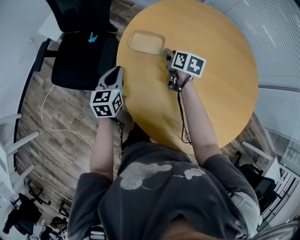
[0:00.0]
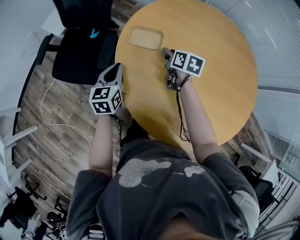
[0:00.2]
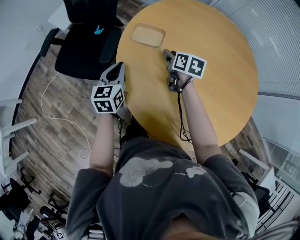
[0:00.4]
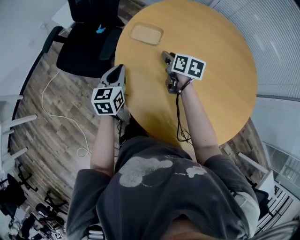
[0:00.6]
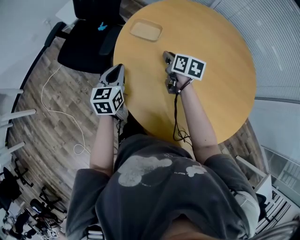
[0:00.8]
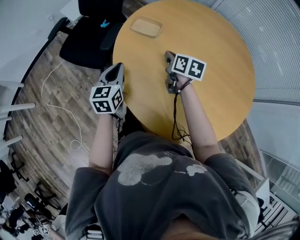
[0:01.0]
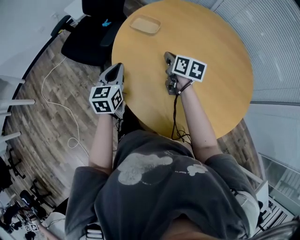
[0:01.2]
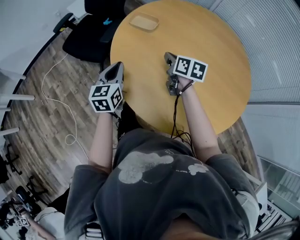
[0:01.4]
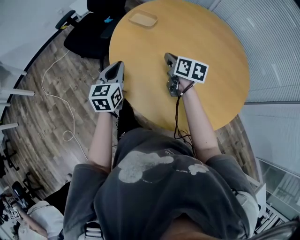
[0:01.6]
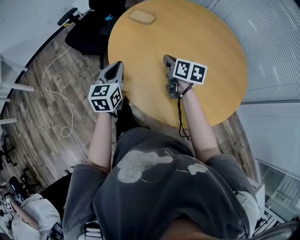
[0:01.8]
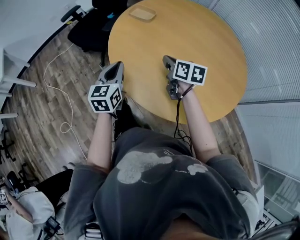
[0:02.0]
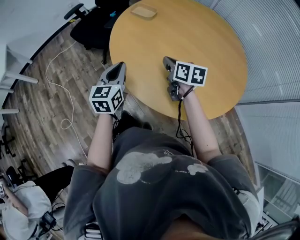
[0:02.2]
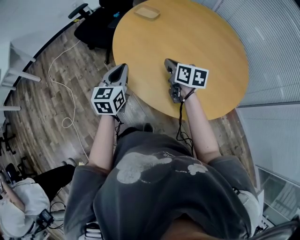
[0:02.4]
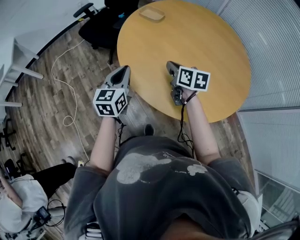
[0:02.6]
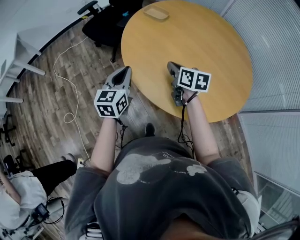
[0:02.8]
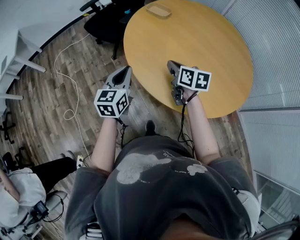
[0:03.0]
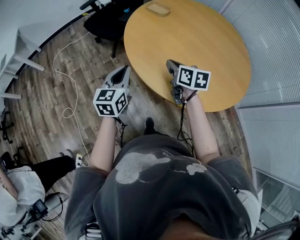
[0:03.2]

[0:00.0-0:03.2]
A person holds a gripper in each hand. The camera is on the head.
0:00.0 to 0:01.6: The grippers both shift backward by some 30 cm. The right gripper swivels some 30 degrees, and closes up.
0:01.6 to 0:03.2: Both grippers travel together backward, roughly 20 cm.

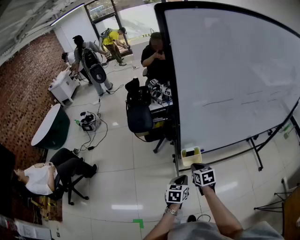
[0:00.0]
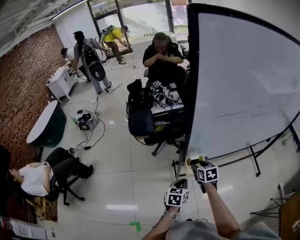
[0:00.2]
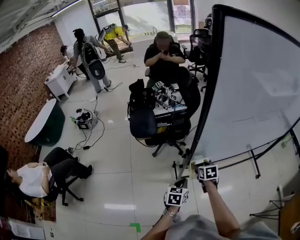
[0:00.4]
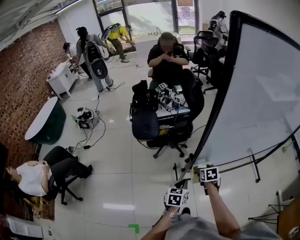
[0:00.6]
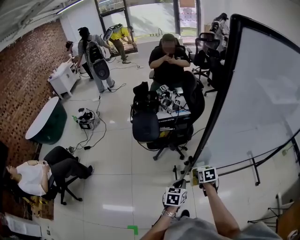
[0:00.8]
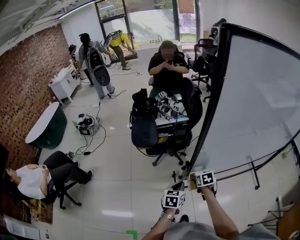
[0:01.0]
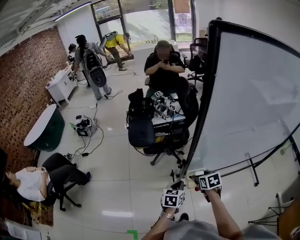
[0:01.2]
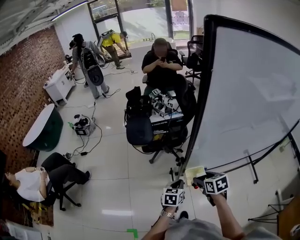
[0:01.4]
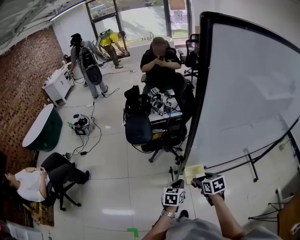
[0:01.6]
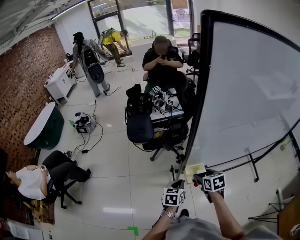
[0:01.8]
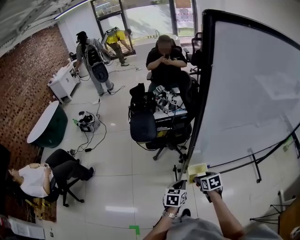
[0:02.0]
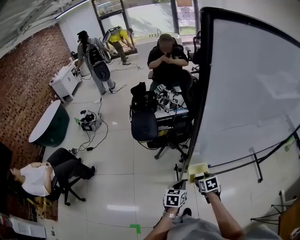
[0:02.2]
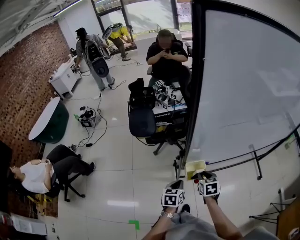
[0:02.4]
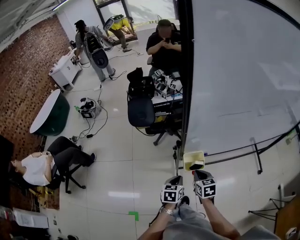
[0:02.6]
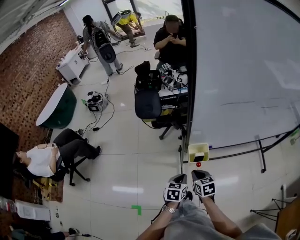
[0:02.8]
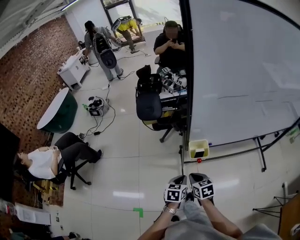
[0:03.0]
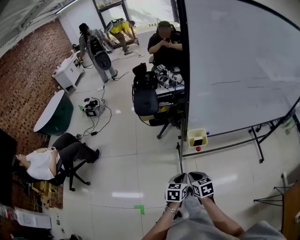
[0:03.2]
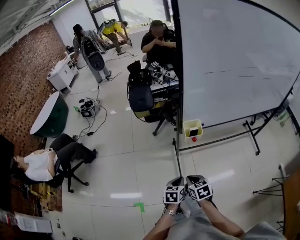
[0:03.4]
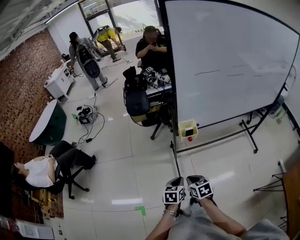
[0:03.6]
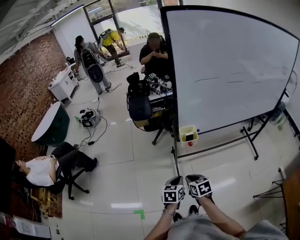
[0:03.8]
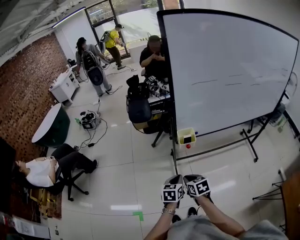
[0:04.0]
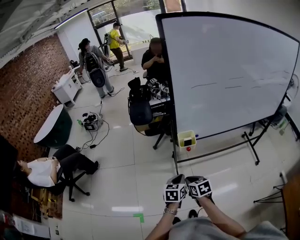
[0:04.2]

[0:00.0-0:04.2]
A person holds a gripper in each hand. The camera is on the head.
0:00.0 to 0:01.4: The left gripper goes about 10 cm forward and to the left; the right gripper travels upward by about 5 cm, and opens its fingers.
0:01.4 to 0:02.8: The left gripper travels backward by some 10 cm. The right gripper travels downward and backward by approximately 10 cm, and closes its fingers.
0:02.8 to 0:04.2: The right gripper is displaced backward by approximately 20 cm. The left gripper moves backward and upward, approximately 15 cm.

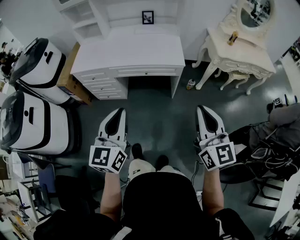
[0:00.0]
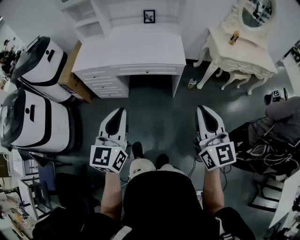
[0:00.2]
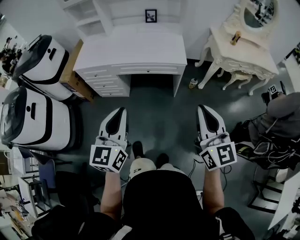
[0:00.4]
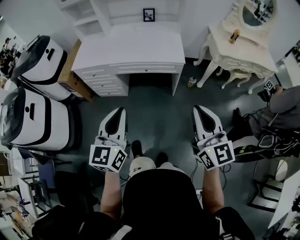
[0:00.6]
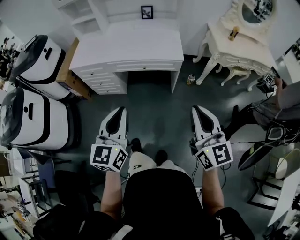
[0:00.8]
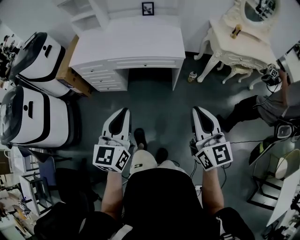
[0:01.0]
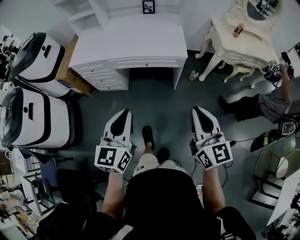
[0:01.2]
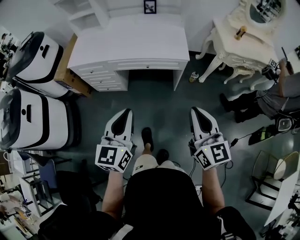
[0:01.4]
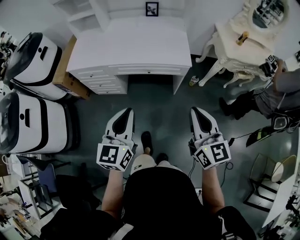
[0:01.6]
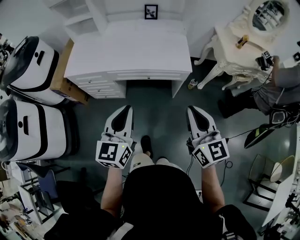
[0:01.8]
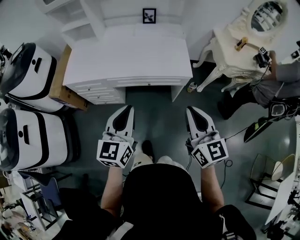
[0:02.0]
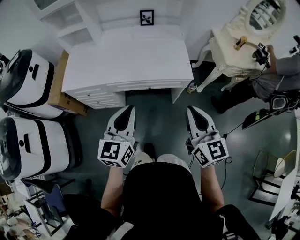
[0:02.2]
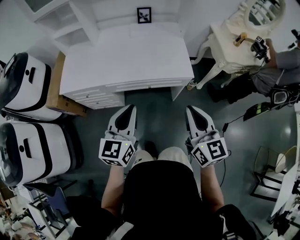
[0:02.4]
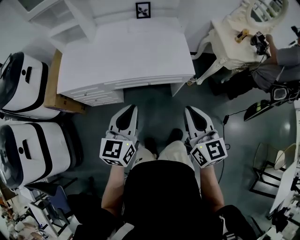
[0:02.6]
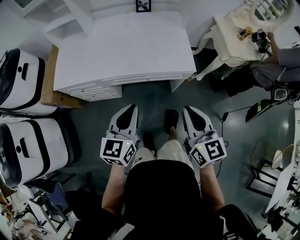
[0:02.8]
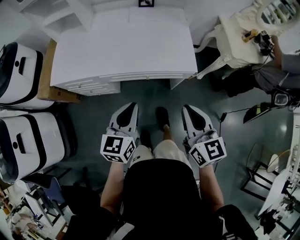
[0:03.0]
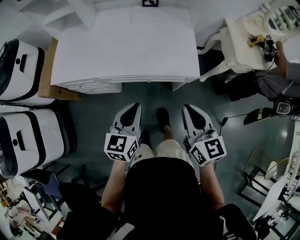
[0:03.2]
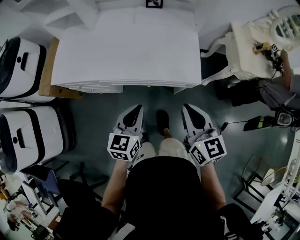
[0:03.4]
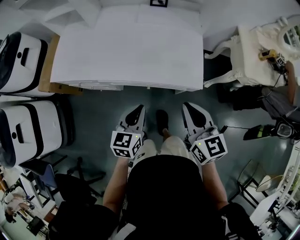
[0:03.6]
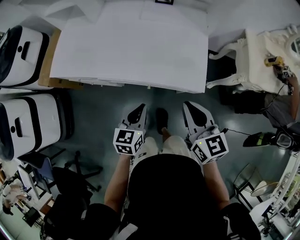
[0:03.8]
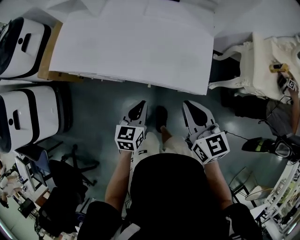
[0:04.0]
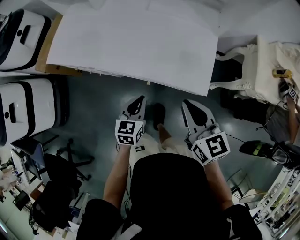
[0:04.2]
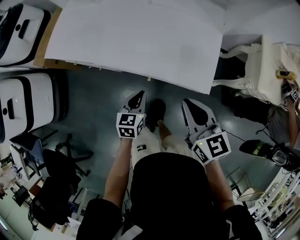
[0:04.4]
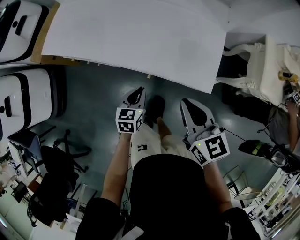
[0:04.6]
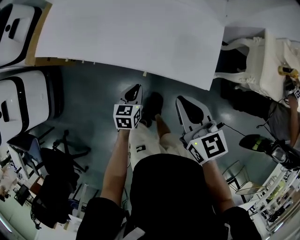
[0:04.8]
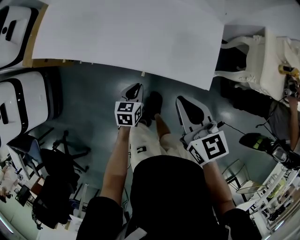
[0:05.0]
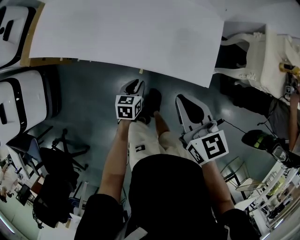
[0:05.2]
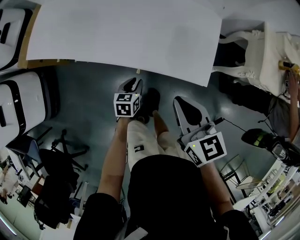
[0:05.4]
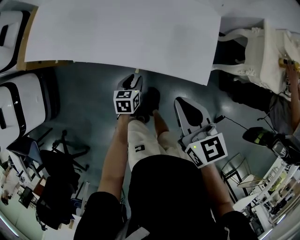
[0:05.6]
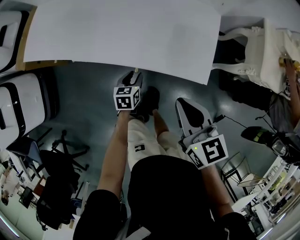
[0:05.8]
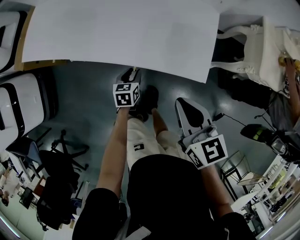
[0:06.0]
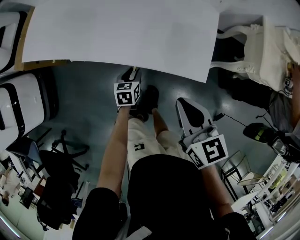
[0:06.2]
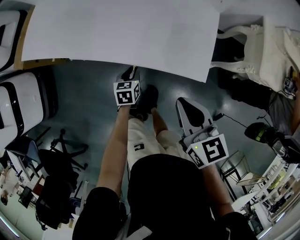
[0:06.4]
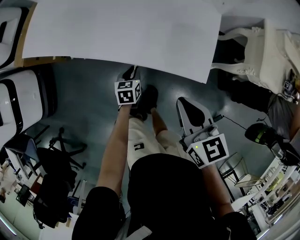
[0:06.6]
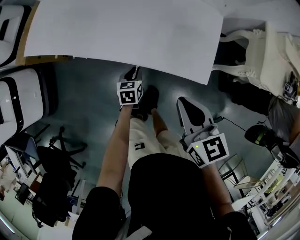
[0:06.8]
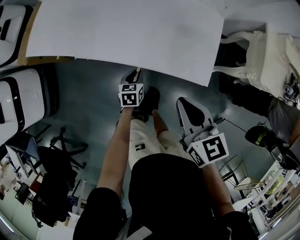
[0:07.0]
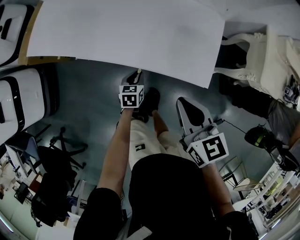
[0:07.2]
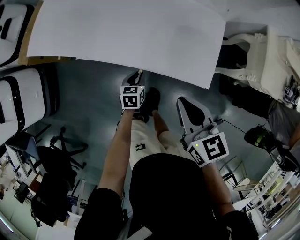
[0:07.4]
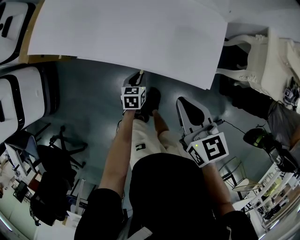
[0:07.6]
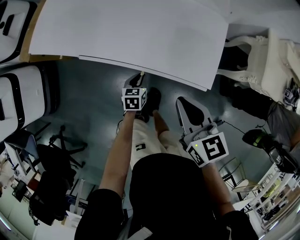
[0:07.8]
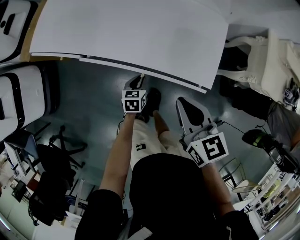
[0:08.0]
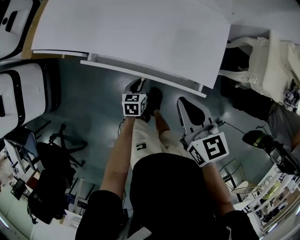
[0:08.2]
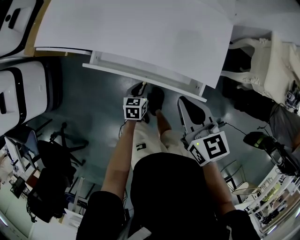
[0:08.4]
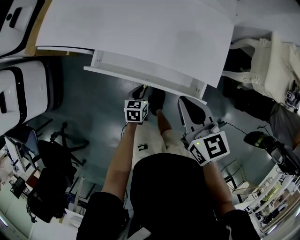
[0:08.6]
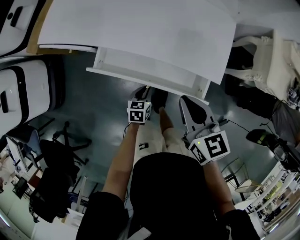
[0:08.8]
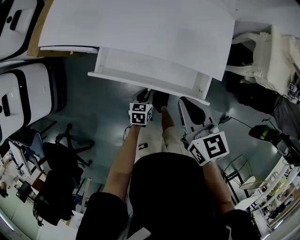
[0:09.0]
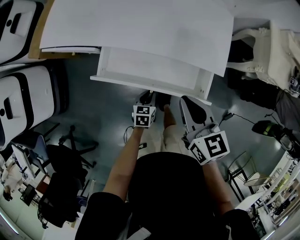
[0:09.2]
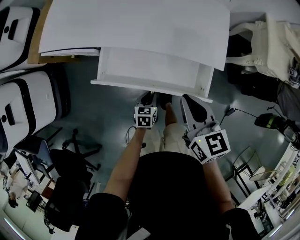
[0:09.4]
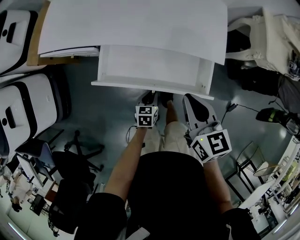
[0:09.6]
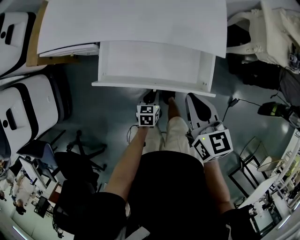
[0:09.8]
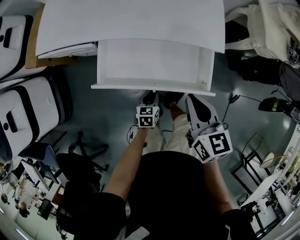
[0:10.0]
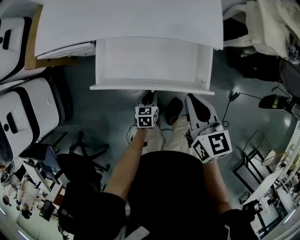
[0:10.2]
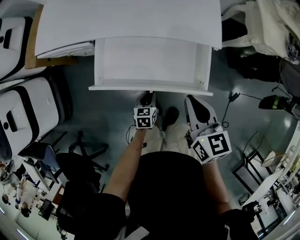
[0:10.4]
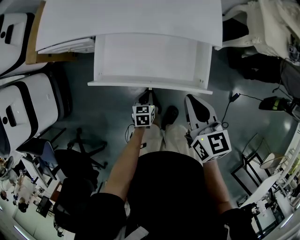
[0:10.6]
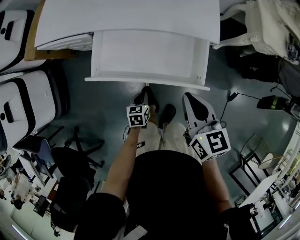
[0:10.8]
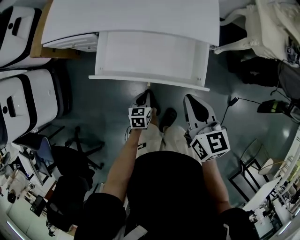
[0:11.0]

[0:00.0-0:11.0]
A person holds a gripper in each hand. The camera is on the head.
0:00.0 to 0:01.6: Both grippers move forward and downward, approximately 10 cm.
0:01.6 to 0:03.2: The right gripper heads forward, covering about 25 cm. Meanwhile the left gripper shifts roughly 25 cm forward and downward.
0:03.2 to 0:04.8: The right gripper heads forward and downward, covering approximately 20 cm, and swivels roughly 20 degrees; the left gripper heads downward and forward, covering roughly 30 cm, and swivels approximately 30 degrees.
0:04.8 to 0:06.2: The right gripper moves some 5 cm, while the left gripper travels downward by some 10 cm, and opens.
0:06.2 to 0:07.8: The grippers move only a little.
0:07.8 to 0:09.4: The left gripper is displaced backward by about 15 cm. Meanwhile the right gripper travels to the left and backward by some 10 cm.
0:09.4 to 0:11.0: Both grippers travel together backward, roughly 15 cm.

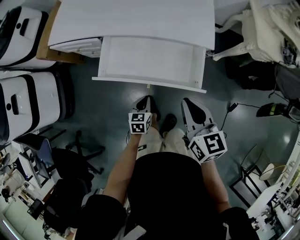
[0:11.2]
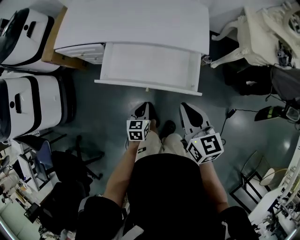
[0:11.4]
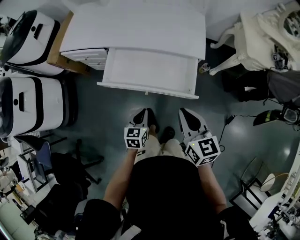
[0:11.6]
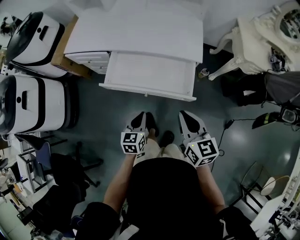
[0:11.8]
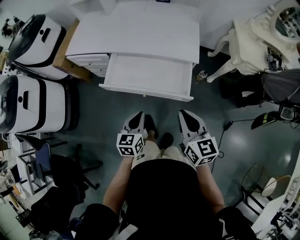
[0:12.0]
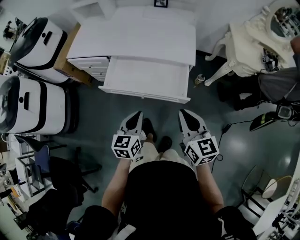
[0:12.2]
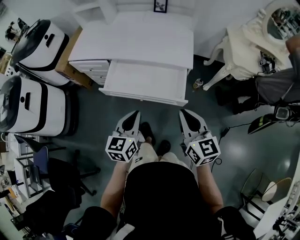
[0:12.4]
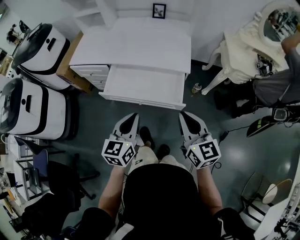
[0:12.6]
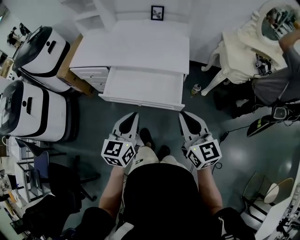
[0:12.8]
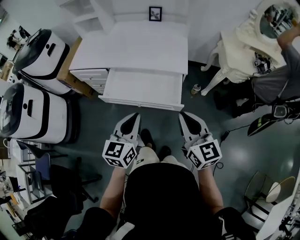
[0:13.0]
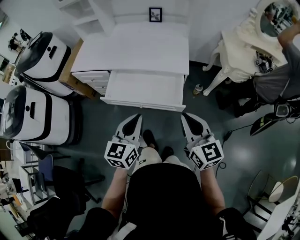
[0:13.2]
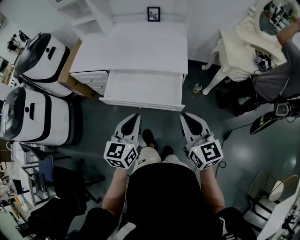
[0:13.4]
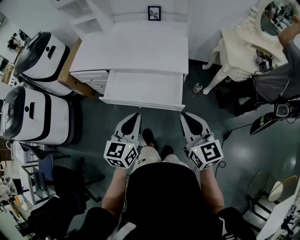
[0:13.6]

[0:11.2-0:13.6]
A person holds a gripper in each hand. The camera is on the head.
0:11.2 to 0:12.4: The right gripper travels backward, upward and to the right by roughly 20 cm. Meanwhile the left gripper goes roughly 30 cm upward, and swivels about 20 degrees.
0:12.4 to 0:13.6: The left gripper travels upward by some 5 cm. The right gripper shifts by approximately 5 cm.

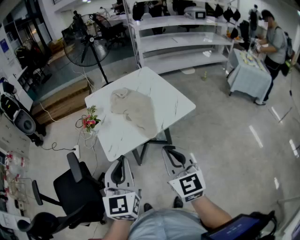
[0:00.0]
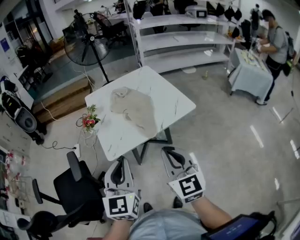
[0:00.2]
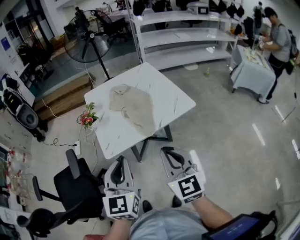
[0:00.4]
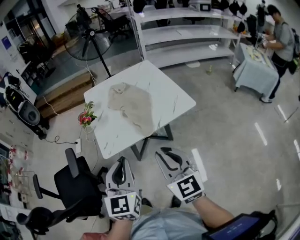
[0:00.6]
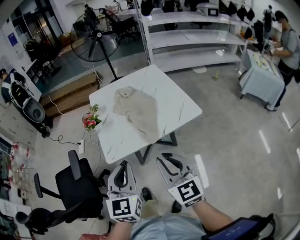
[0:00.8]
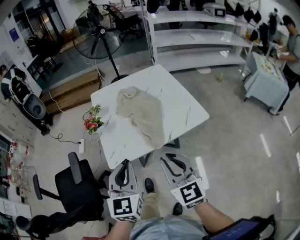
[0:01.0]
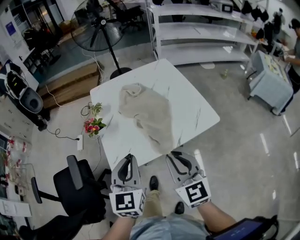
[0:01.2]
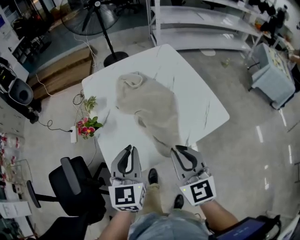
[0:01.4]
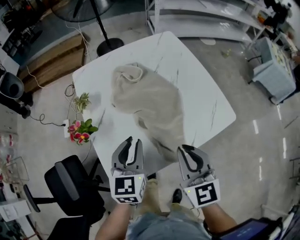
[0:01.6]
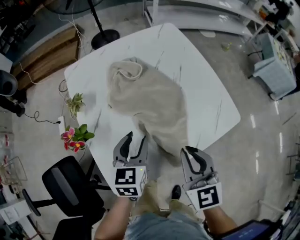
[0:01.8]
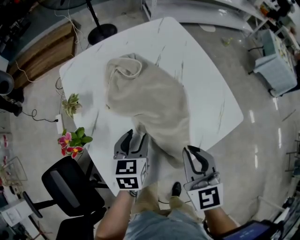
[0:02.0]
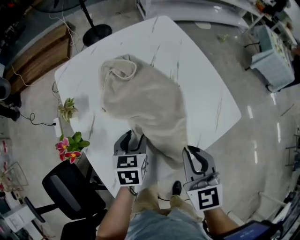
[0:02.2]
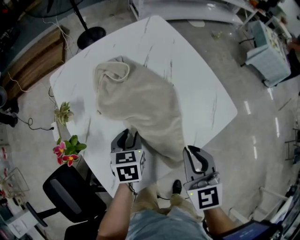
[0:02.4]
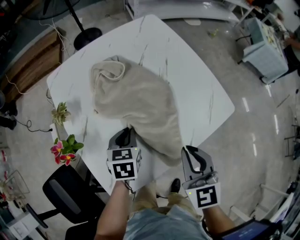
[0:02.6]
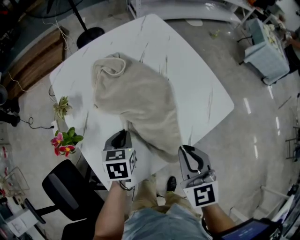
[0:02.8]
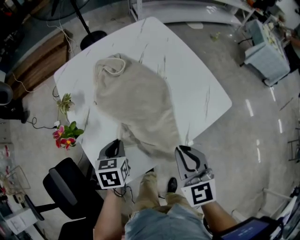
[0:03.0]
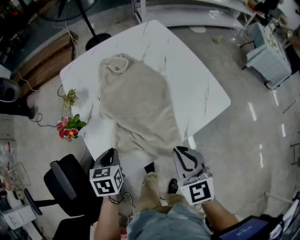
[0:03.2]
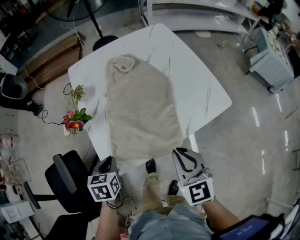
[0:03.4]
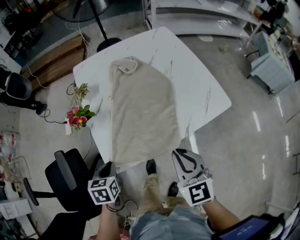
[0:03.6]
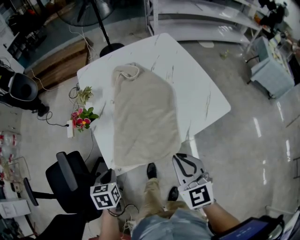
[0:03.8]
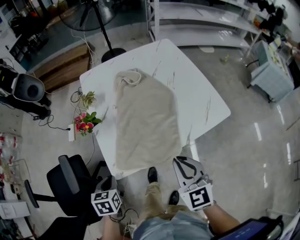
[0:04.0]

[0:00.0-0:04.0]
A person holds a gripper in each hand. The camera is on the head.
0:00.0 to 0:01.4: Both grippers move forward and downward, some 25 cm.
0:01.4 to 0:02.6: The right gripper goes approximately 10 cm downward and forward, and changes its angle by roughly 20 degrees; the left gripper is displaced downward and forward by some 25 cm, tilts its fingers approximately 30 degrees downward, and opens and closes again.
0:02.6 to 0:04.0: The right gripper heads backward, covering roughly 10 cm, while the left gripper goes some 30 cm backward and to the left, and turns by about 20 degrees.
